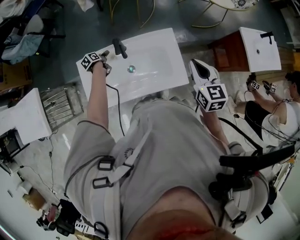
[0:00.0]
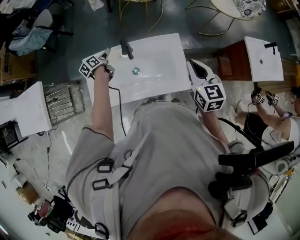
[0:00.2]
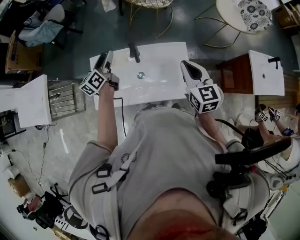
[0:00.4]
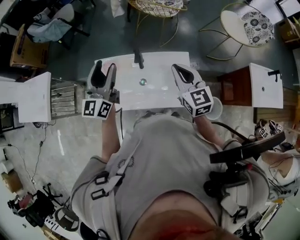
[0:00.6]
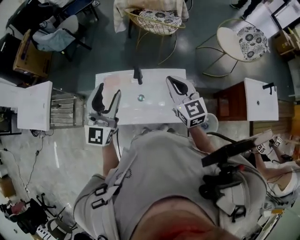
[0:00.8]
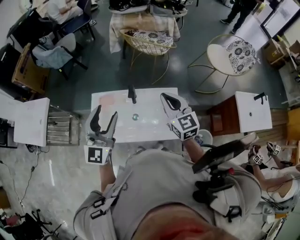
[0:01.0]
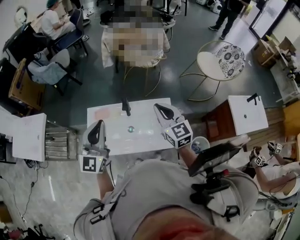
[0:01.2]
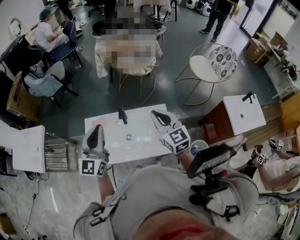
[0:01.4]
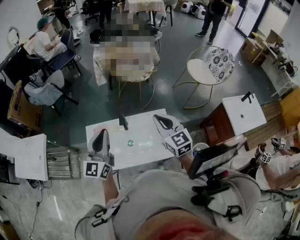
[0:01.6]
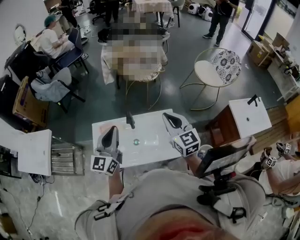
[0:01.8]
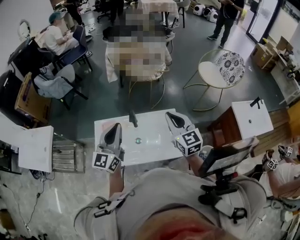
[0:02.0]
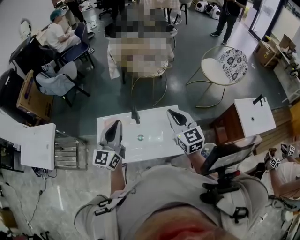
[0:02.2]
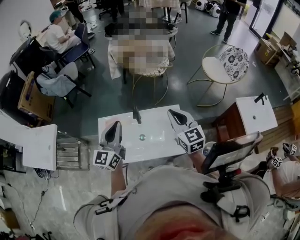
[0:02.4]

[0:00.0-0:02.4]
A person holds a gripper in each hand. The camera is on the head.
0:00.0 to 0:01.2: The left gripper shifts some 50 cm upward and backward, tips its fingers upward by approximately 60 degrees, and closes up. Meanwhile the right gripper moves to the left and upward, approximately 15 cm, and changes its angle by some 30 degrees.
0:01.2 to 0:02.4: The left gripper changes place by about 5 cm.

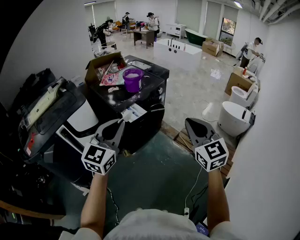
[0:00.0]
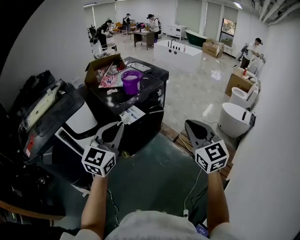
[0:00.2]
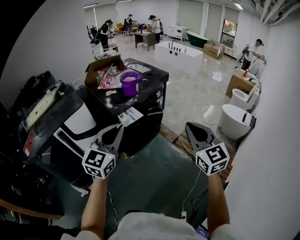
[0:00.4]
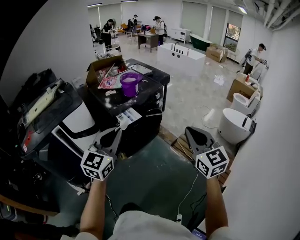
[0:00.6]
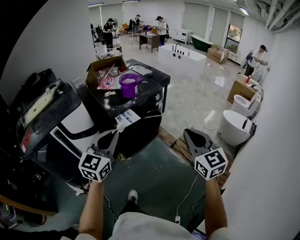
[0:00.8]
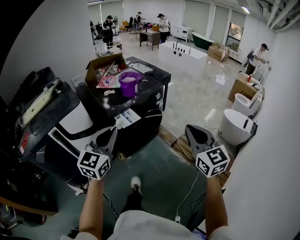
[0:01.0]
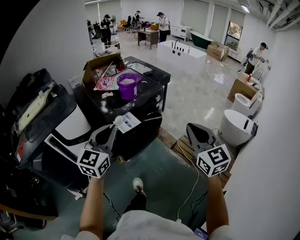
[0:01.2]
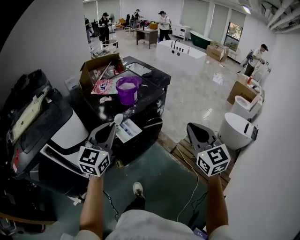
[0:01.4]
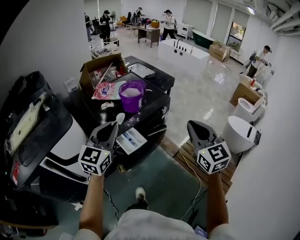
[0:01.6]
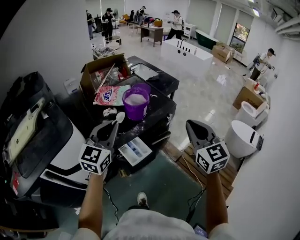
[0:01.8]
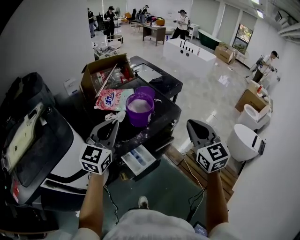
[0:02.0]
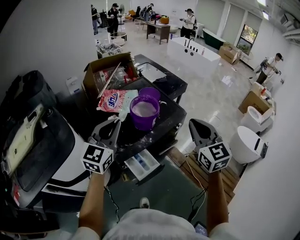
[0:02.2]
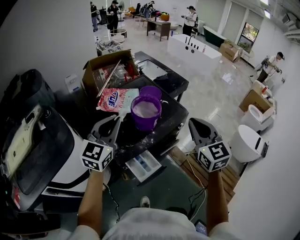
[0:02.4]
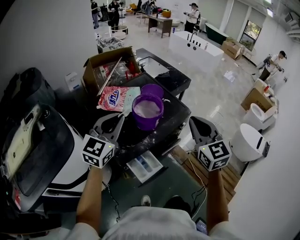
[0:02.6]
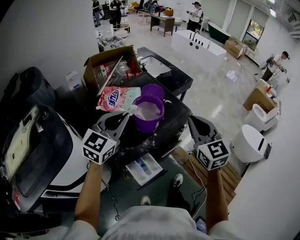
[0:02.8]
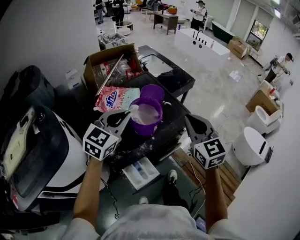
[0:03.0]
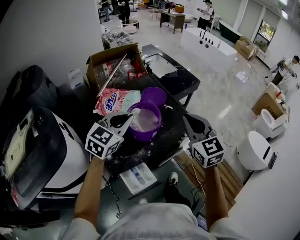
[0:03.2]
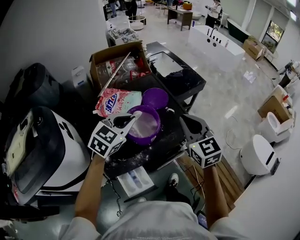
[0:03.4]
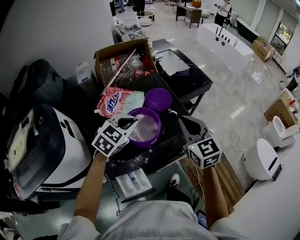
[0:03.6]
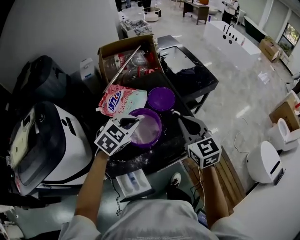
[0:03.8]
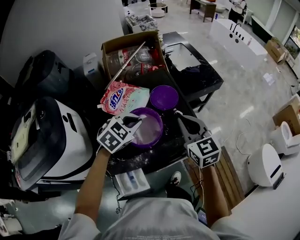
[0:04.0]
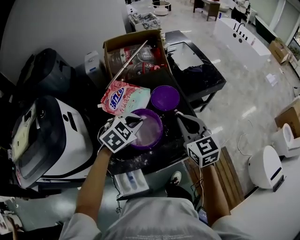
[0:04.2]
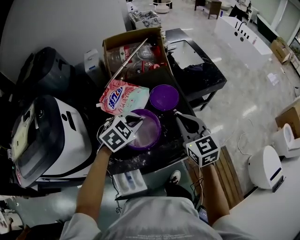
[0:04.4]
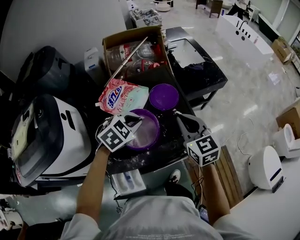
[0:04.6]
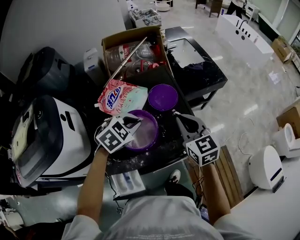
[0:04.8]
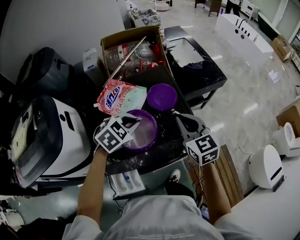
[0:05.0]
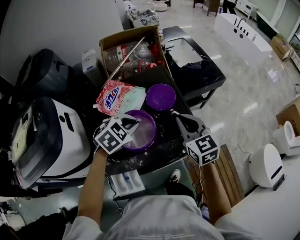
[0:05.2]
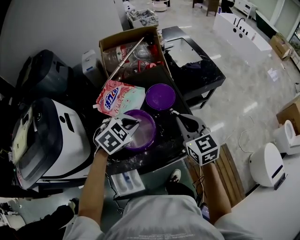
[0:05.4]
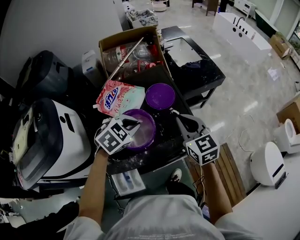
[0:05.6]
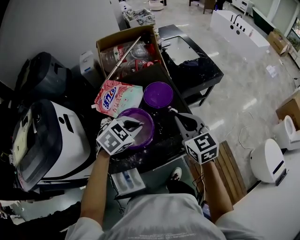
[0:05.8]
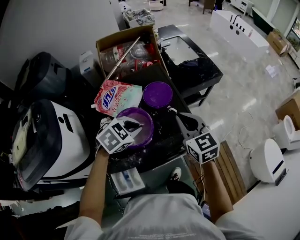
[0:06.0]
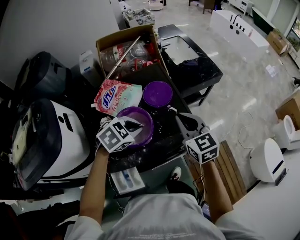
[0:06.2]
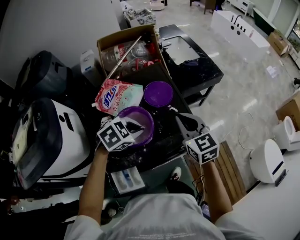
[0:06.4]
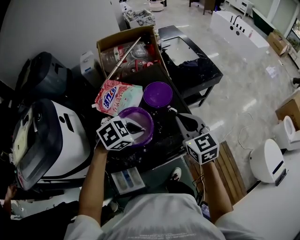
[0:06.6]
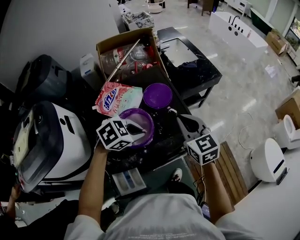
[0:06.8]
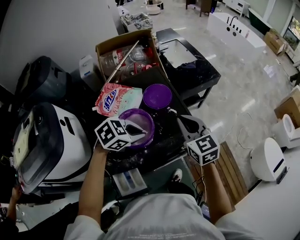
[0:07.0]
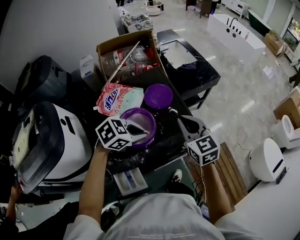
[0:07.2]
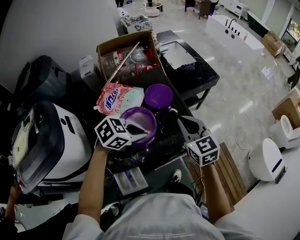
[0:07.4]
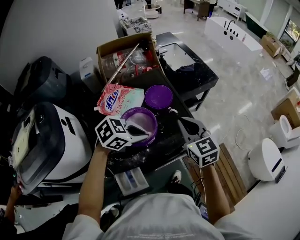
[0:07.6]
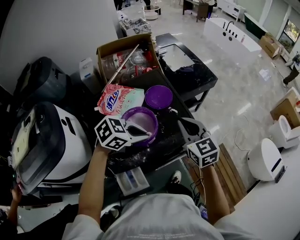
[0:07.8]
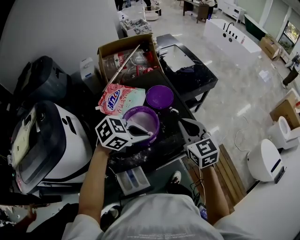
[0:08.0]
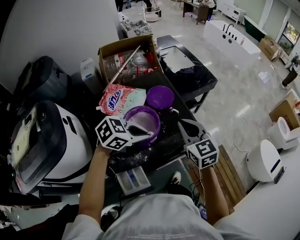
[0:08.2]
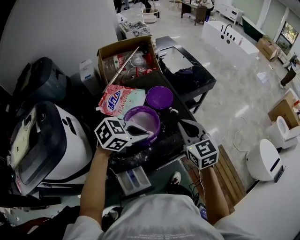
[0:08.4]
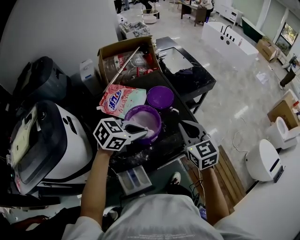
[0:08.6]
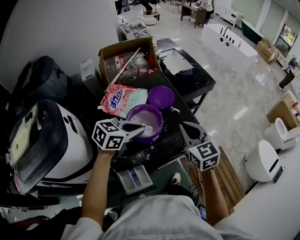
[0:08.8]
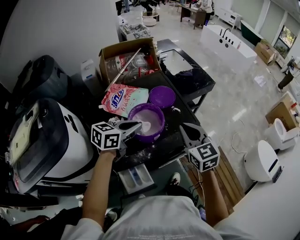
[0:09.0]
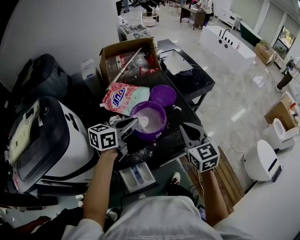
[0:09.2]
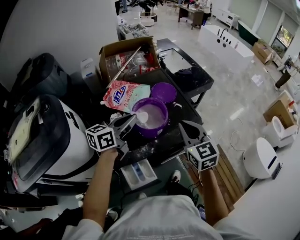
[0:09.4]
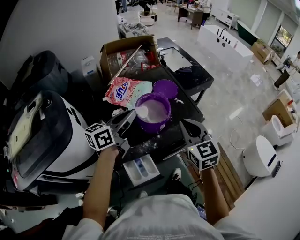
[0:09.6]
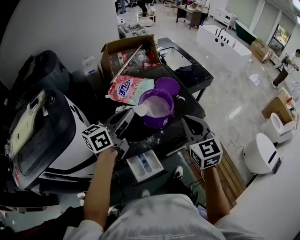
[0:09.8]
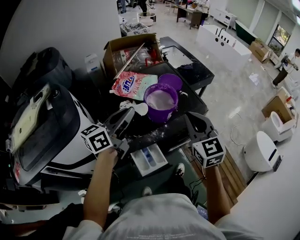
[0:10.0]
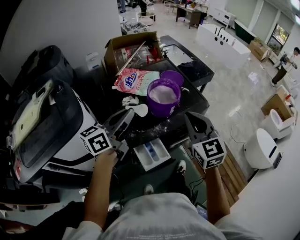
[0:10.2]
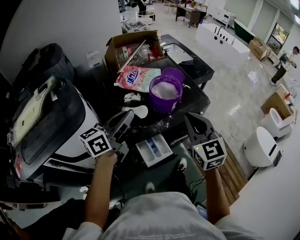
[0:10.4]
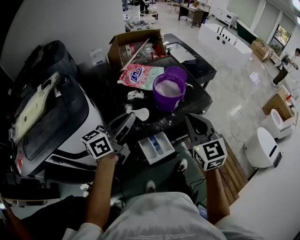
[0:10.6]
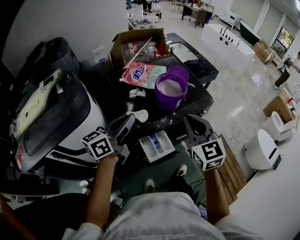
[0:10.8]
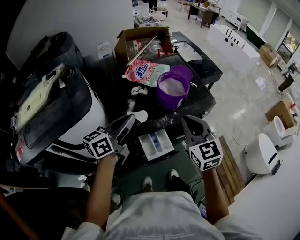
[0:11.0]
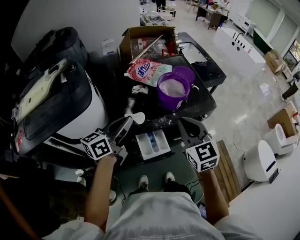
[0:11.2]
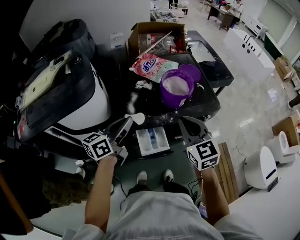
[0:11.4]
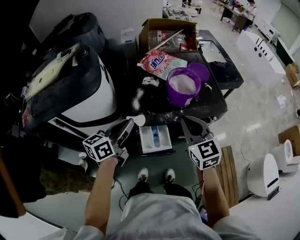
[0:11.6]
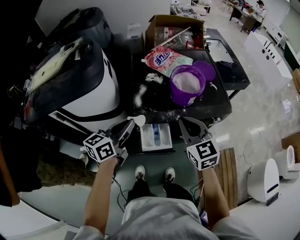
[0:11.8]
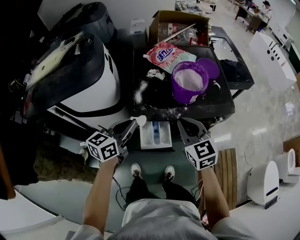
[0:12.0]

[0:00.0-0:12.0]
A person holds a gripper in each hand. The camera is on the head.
0:00.0 to 0:01.6: The two grippers go about 30 cm forward.
0:01.6 to 0:03.0: The two grippers go roughly 30 cm forward.
0:03.0 to 0:04.4: The left gripper moves downward, forward and to the right, roughly 20 cm, and tips its fingers downward by roughly 40 degrees, while the right gripper is displaced forward and downward by roughly 20 cm, and turns by about 20 degrees.
0:04.4 to 0:06.0: There are only small adjustments of the grippers.
0:06.0 to 0:07.6: The left gripper ends up approximately 5 cm from where it was, and changes its angle by approximately 20 degrees.
0:07.6 to 0:09.0: The left gripper moves to the left, about 5 cm, and changes its angle by some 40 degrees; the right gripper goes some 5 cm backward.
0:09.0 to 0:10.4: The left gripper heads backward, to the left and upward, covering some 20 cm, and rotates some 30 degrees. Meanwhile the right gripper moves backward and to the left, roughly 20 cm.
0:10.4 to 0:12.0: The two grippers go approximately 10 cm downward. The right gripper rotates about 30 degrees. The left gripper turns by approximately 30 degrees.

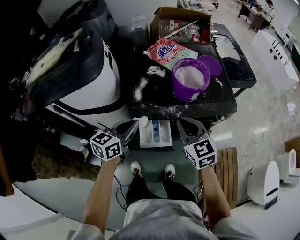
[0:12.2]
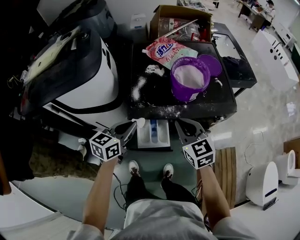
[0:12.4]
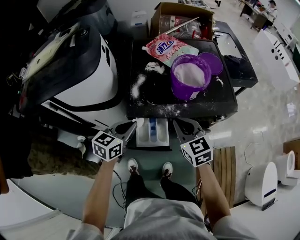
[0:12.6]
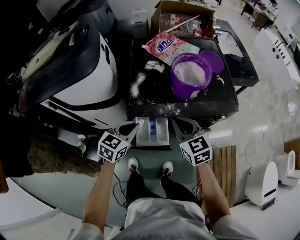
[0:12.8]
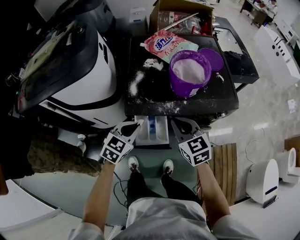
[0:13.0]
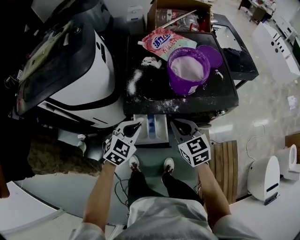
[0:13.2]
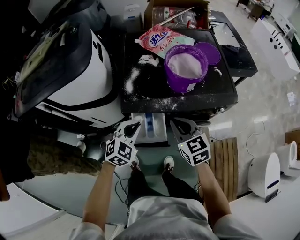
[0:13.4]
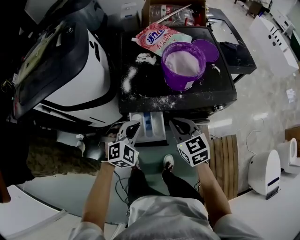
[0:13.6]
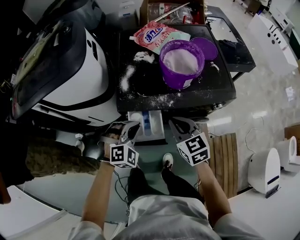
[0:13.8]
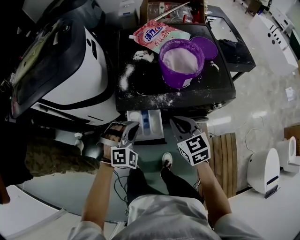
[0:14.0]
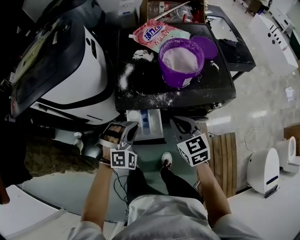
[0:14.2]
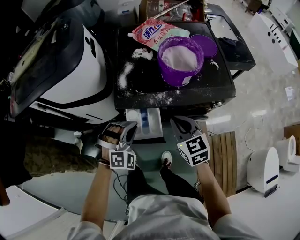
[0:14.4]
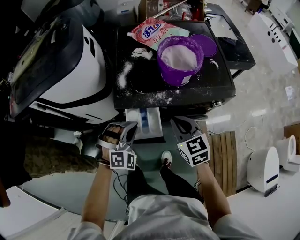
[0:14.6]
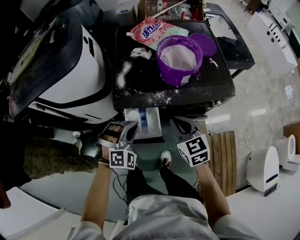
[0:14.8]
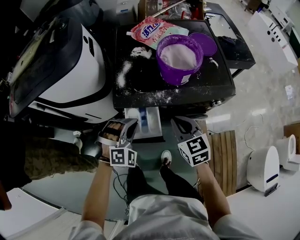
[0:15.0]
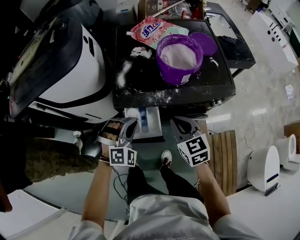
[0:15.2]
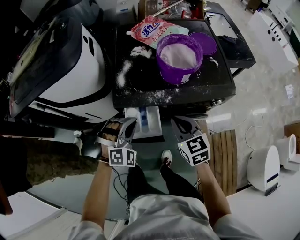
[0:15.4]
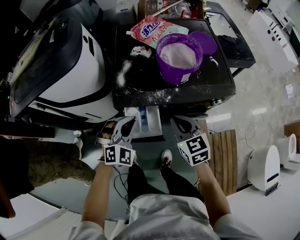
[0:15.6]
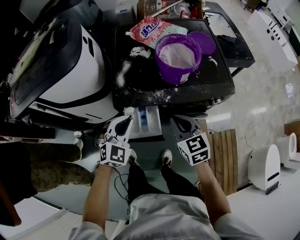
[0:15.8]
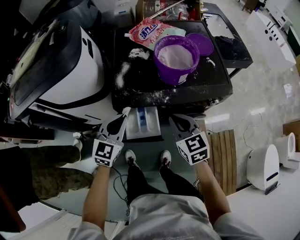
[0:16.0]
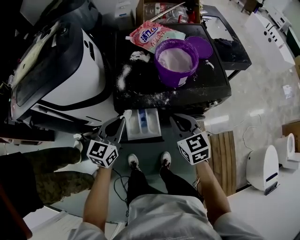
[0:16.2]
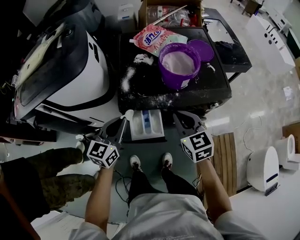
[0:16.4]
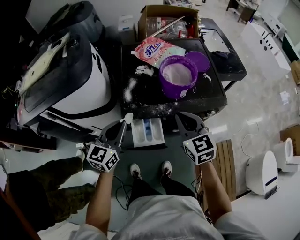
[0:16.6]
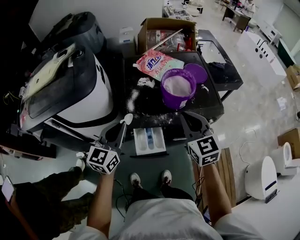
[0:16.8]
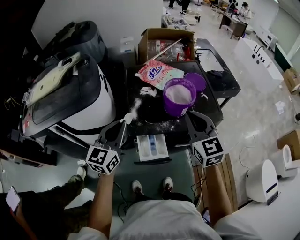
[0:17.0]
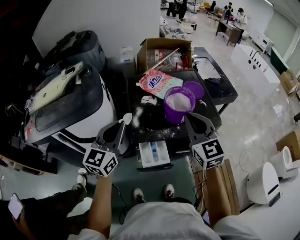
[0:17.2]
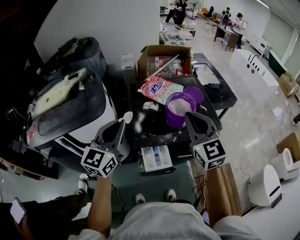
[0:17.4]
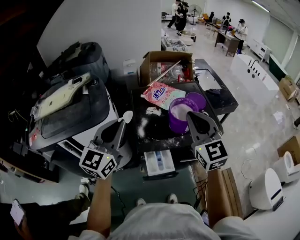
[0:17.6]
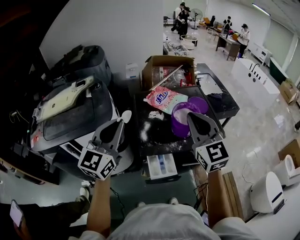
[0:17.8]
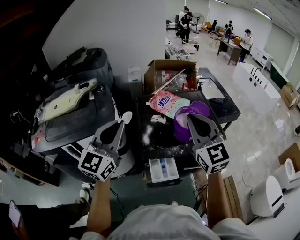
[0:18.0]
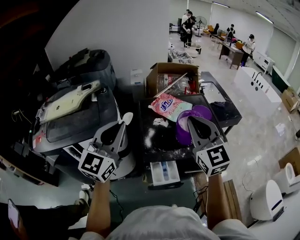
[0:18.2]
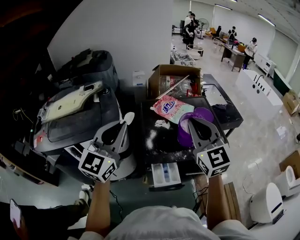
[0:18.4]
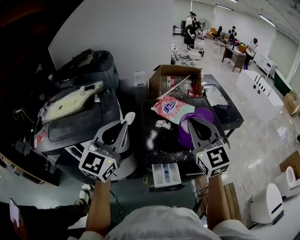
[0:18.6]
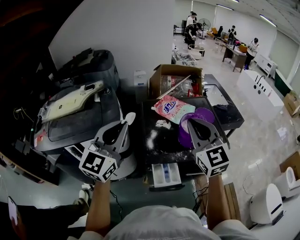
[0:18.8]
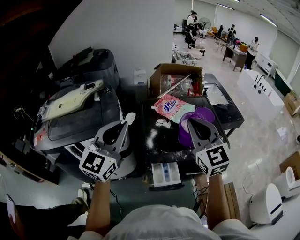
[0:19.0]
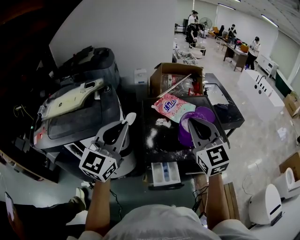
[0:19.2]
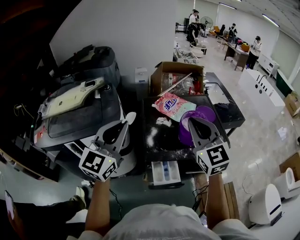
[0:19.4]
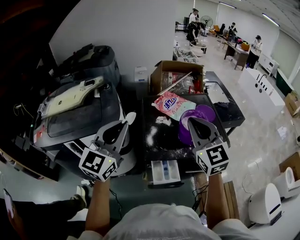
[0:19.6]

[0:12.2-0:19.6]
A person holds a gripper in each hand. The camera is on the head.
0:12.2 to 0:13.6: Both grippers move downward, roughly 10 cm. The left gripper rotates around the line of its fingers by roughly 60 degrees, clockwise from behind.
0:13.6 to 0:15.2: The left gripper changes its angle by roughly 20 degrees.
0:15.2 to 0:16.6: The right gripper shifts approximately 10 cm upward. The left gripper goes approximately 15 cm upward and to the left, and rotates around the line of its fingers by some 70 degrees, counterclockwise from behind.
0:16.6 to 0:18.2: The two grippers go approximately 25 cm upward. The left gripper changes its angle by approximately 30 degrees. Meanwhile the right gripper rotates approximately 30 degrees.
0:18.2 to 0:19.6: The grippers stay close to where they were, moving slightly.

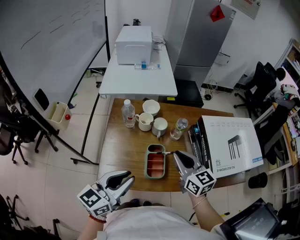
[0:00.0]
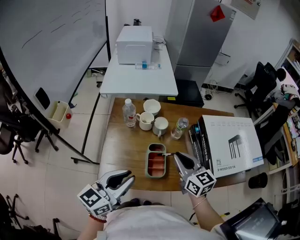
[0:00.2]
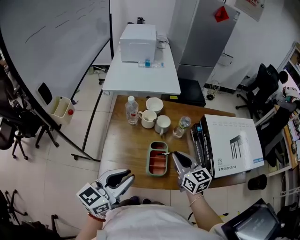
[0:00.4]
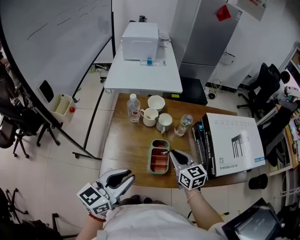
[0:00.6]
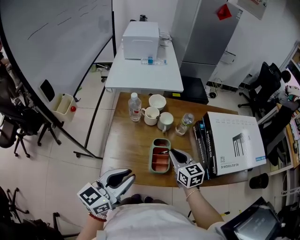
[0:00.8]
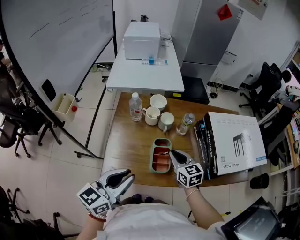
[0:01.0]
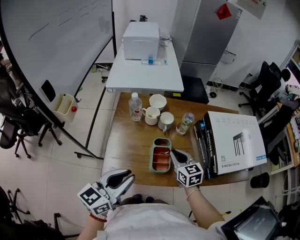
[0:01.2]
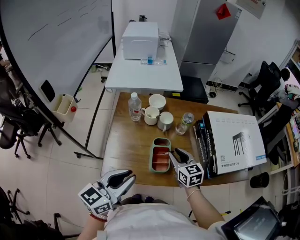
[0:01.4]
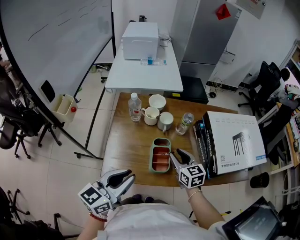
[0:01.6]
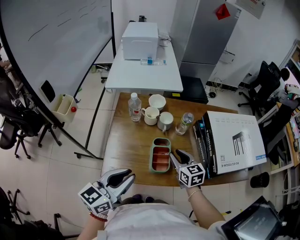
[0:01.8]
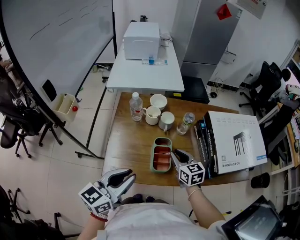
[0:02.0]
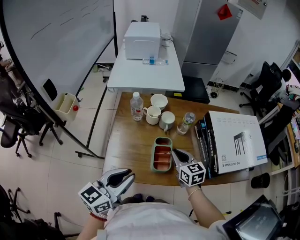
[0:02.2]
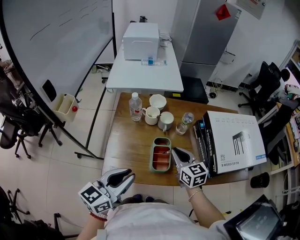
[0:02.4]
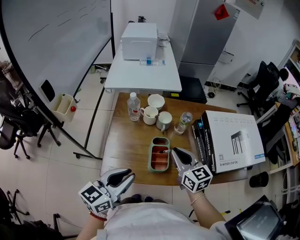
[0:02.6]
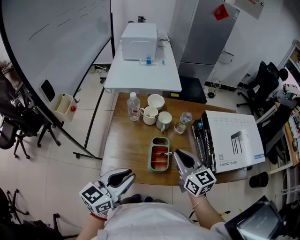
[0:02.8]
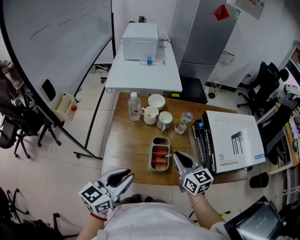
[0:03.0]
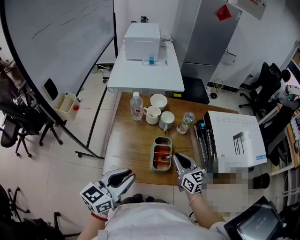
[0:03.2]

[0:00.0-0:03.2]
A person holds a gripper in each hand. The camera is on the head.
0:00.0 to 0:01.6: The right gripper shifts about 10 cm downward, and opens.
0:01.6 to 0:03.2: The right gripper goes upward and returns, about 10 cm each way, and closes.
